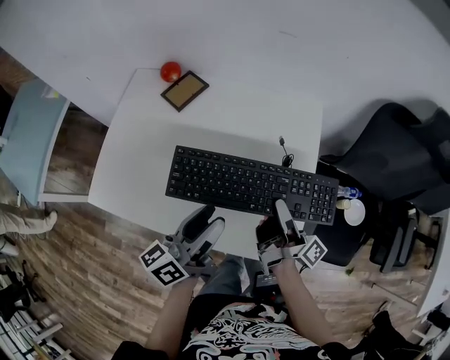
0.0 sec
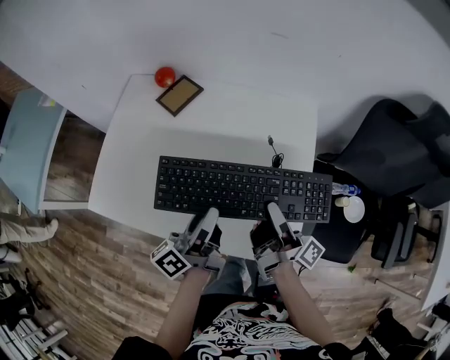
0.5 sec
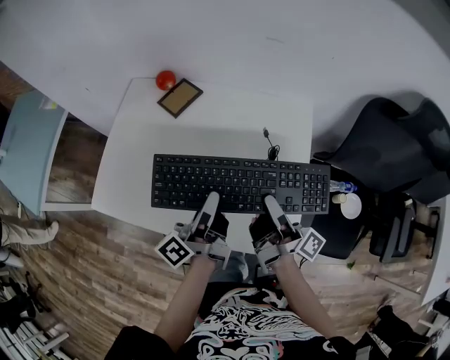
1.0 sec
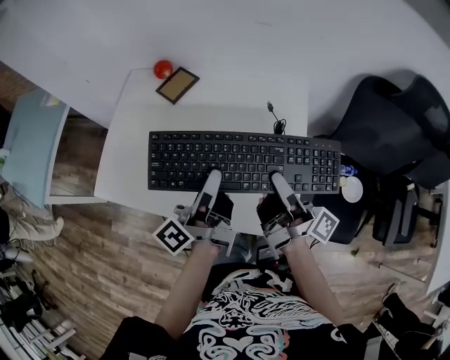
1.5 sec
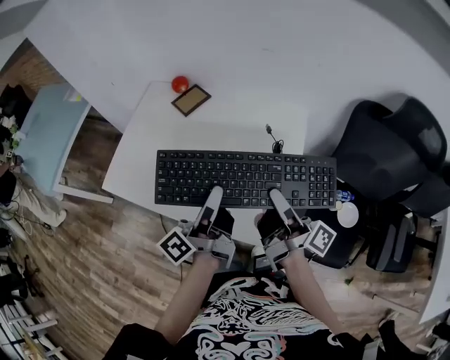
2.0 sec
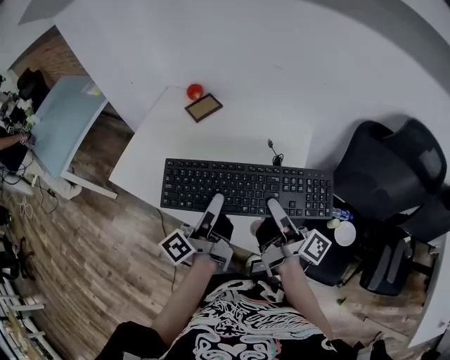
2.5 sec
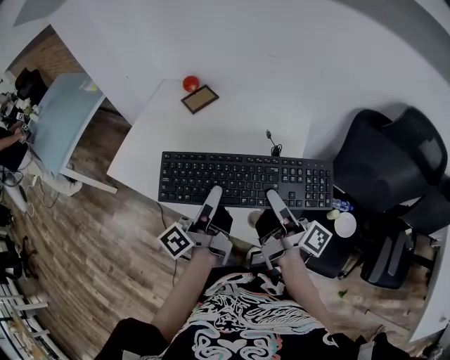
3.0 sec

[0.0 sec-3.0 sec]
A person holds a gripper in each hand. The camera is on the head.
0.0 sec to 1.5 sec: The left gripper heads upward, covering about 5 cm, turns by some 30 degrees, and closes. Meanwhile the right gripper goes approximately 10 cm upward.
1.5 sec to 3.0 sec: The grippers move only a little.

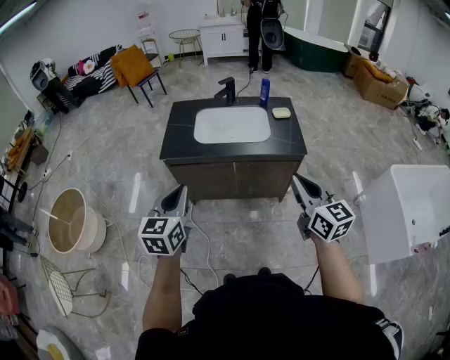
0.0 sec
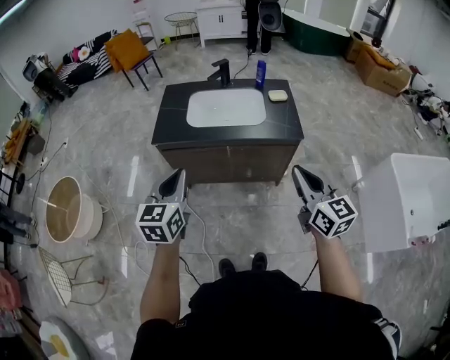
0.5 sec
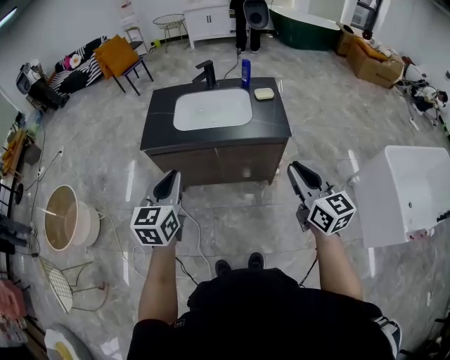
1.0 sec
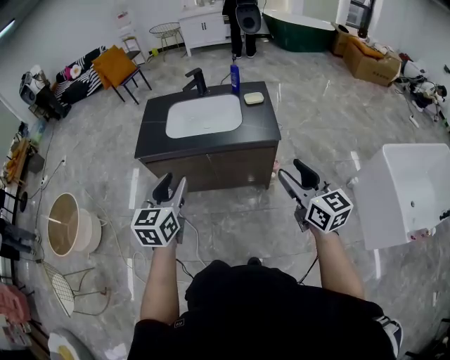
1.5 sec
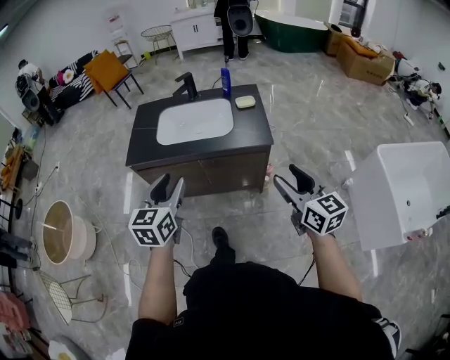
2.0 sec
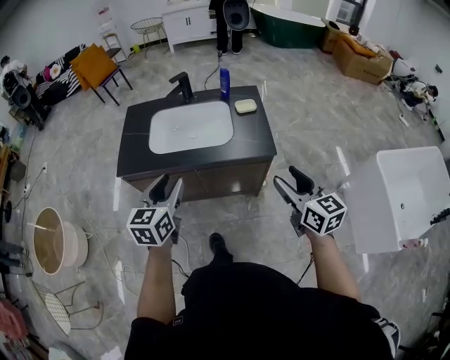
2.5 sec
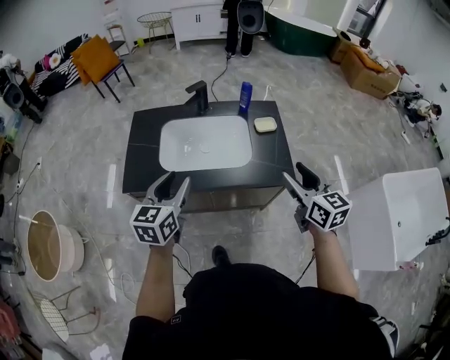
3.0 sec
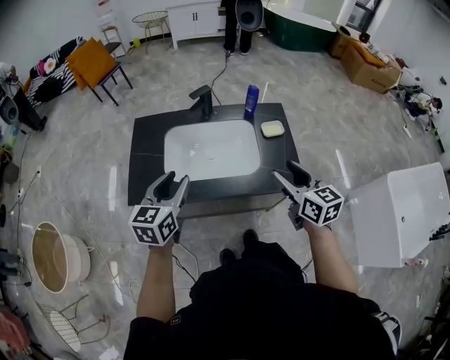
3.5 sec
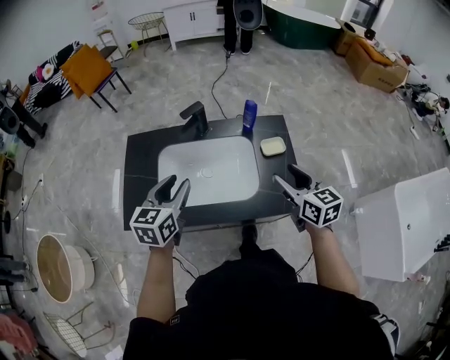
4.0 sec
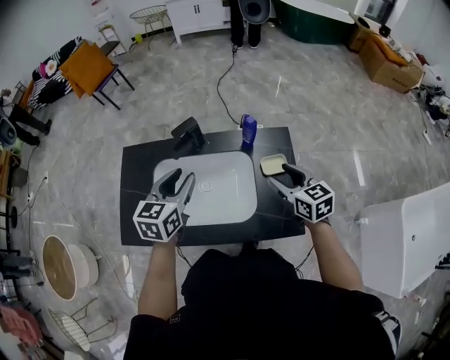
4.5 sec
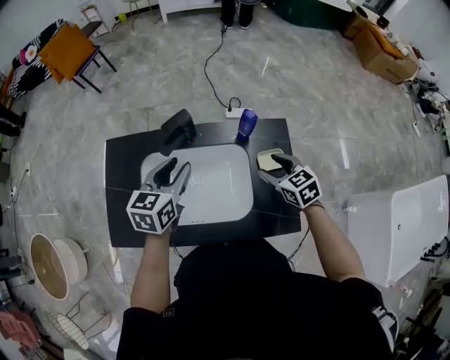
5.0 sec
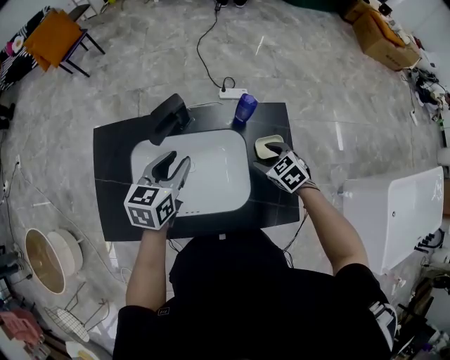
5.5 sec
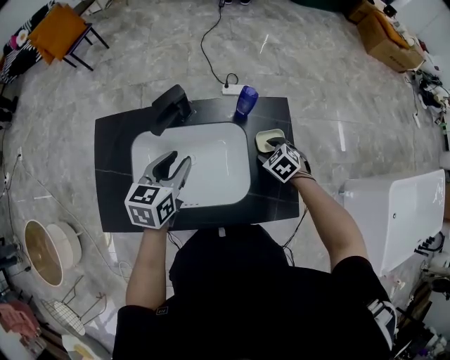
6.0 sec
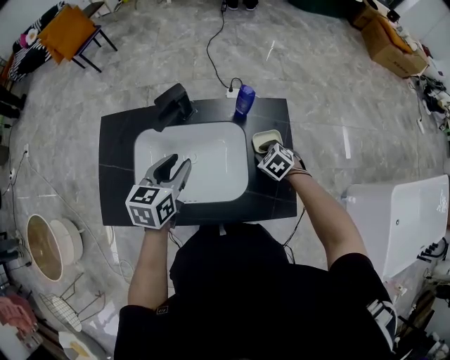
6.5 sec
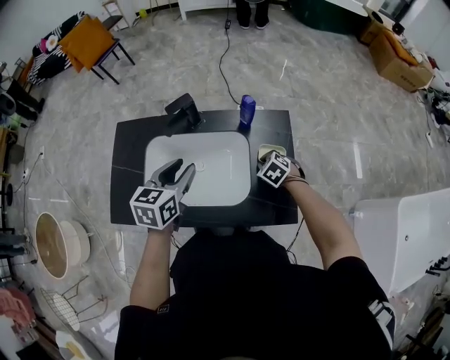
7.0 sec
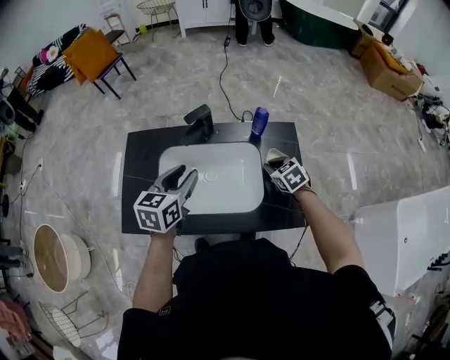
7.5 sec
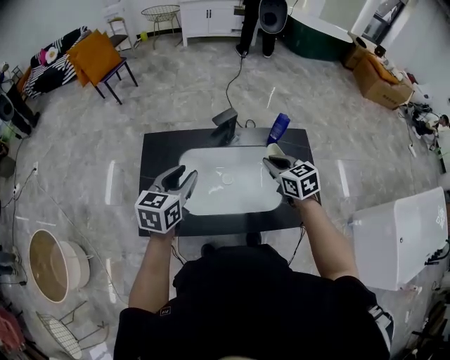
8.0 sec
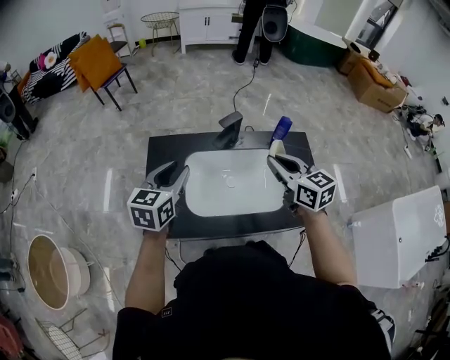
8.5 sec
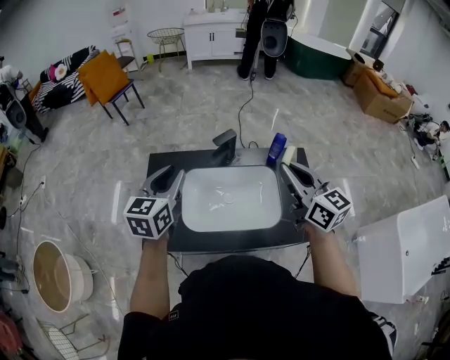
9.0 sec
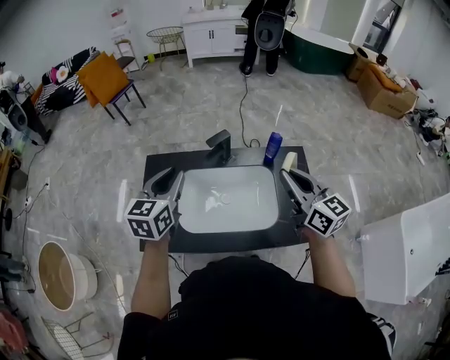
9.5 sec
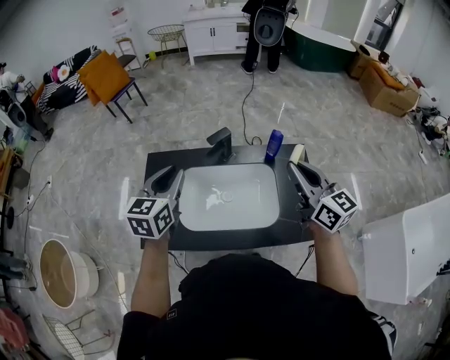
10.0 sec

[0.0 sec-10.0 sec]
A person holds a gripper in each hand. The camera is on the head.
0.0 sec to 2.0 sec: Both grippers travel together to the right, some 15 cm. The right gripper opens its fingers. Meanwhile the left gripper opens its fingers.
2.0 sec to 4.0 sec: Both grippers travel together forward, roughly 40 cm.
4.0 sec to 6.0 sec: The left gripper is displaced forward, downward and to the right by about 15 cm; the right gripper goes roughly 30 cm downward and forward, and angles its fingers downward, by roughly 50 degrees.
6.0 sec to 8.0 sec: The right gripper moves upward and to the left, about 25 cm, angles its fingers upward, by approximately 30 degrees, and closes up, while the left gripper goes some 15 cm to the left and upward.
8.0 sec to 10.0 sec: The left gripper shifts roughly 10 cm upward. The right gripper heads upward and to the right, covering approximately 20 cm, and tips its fingers upward by approximately 30 degrees.

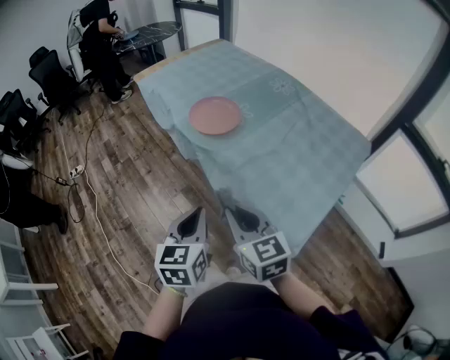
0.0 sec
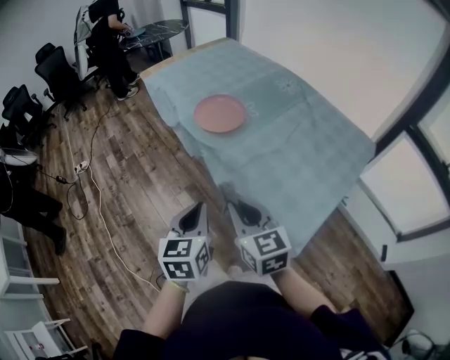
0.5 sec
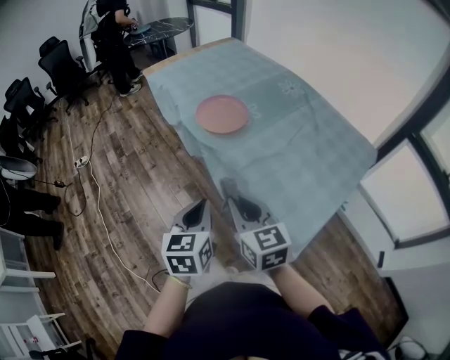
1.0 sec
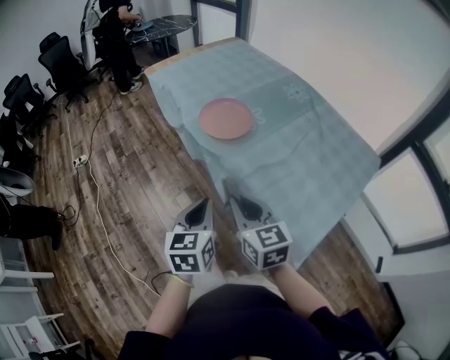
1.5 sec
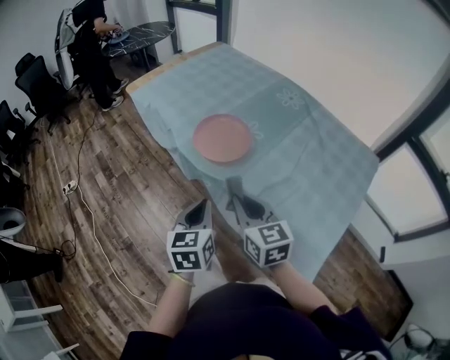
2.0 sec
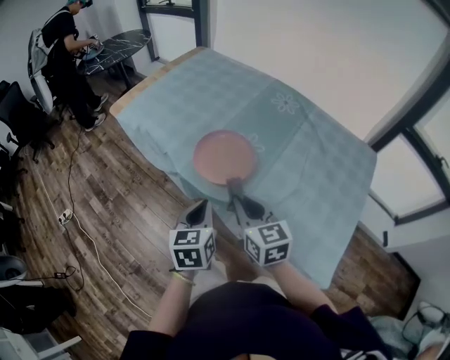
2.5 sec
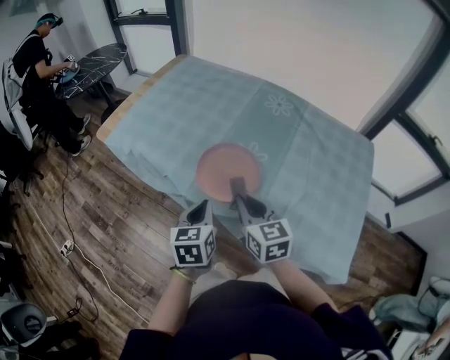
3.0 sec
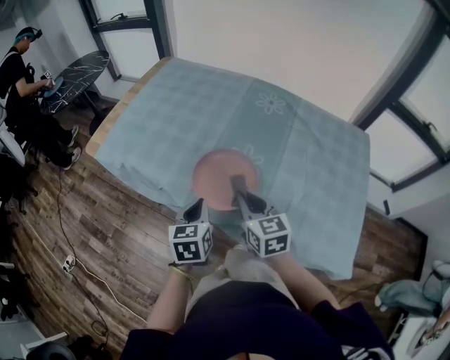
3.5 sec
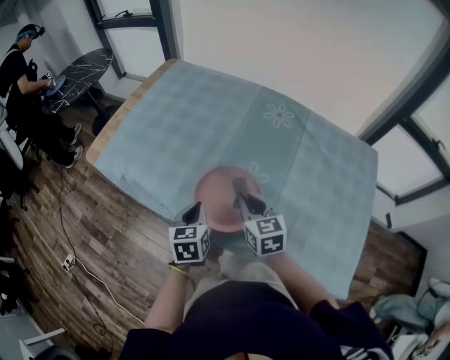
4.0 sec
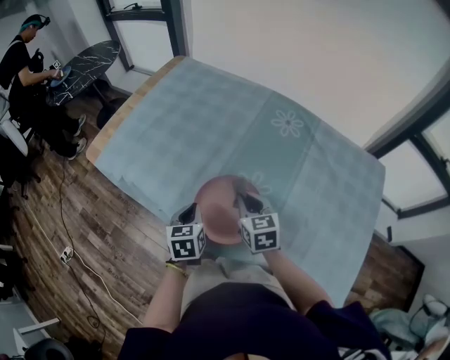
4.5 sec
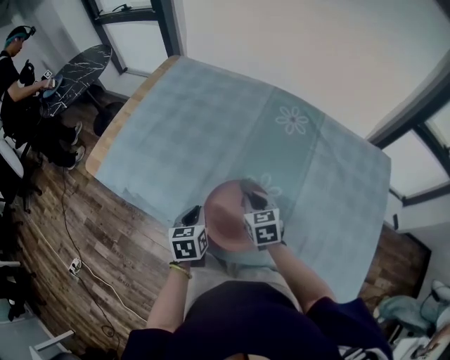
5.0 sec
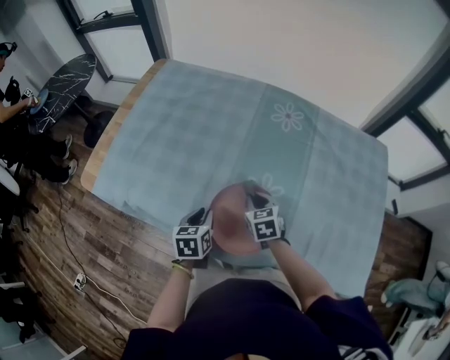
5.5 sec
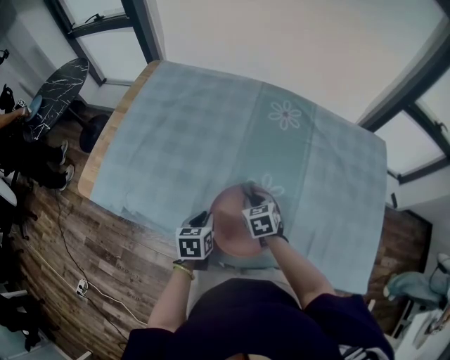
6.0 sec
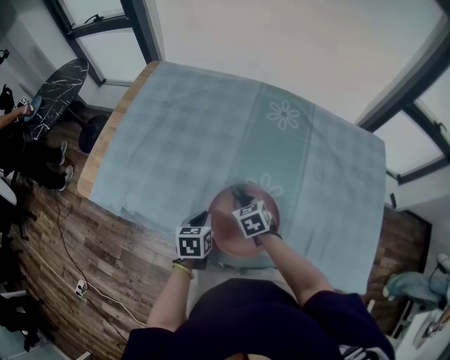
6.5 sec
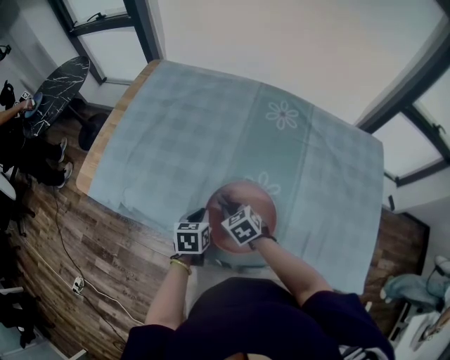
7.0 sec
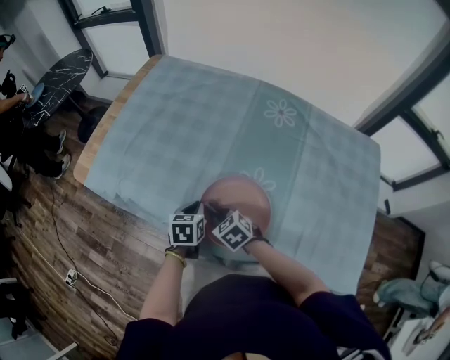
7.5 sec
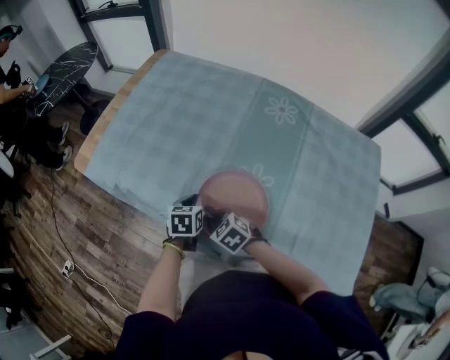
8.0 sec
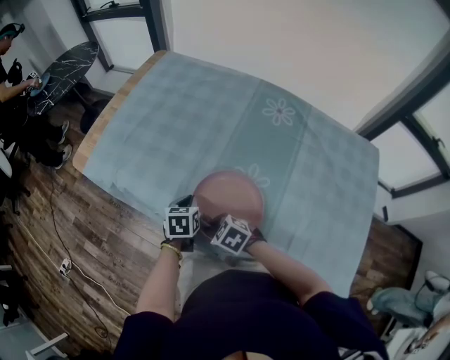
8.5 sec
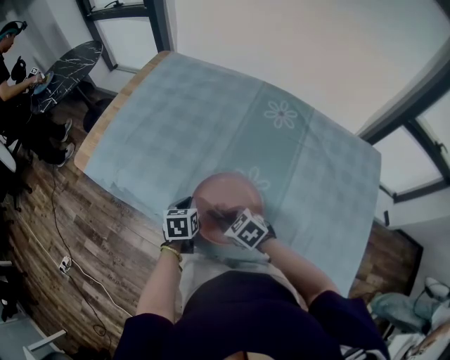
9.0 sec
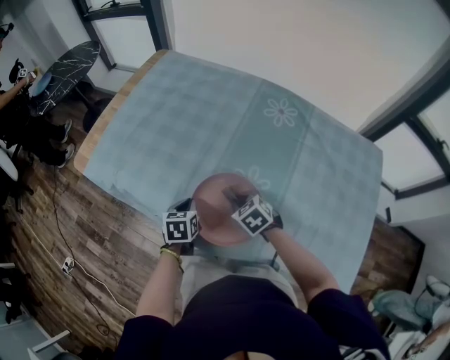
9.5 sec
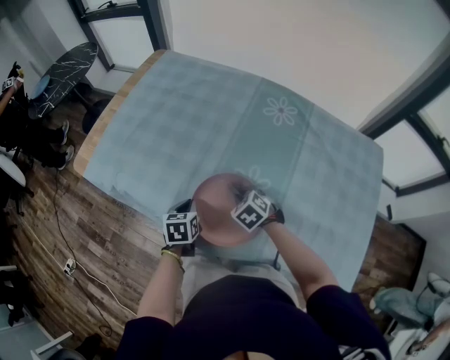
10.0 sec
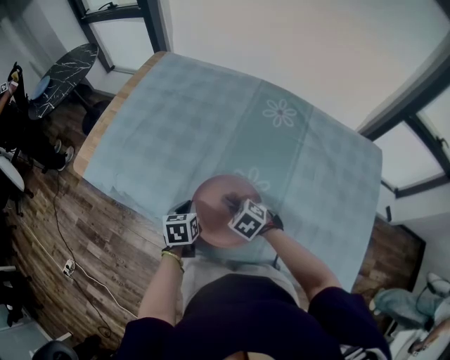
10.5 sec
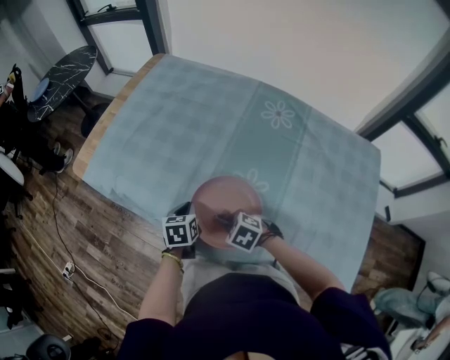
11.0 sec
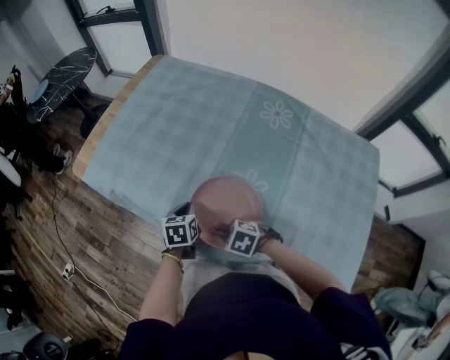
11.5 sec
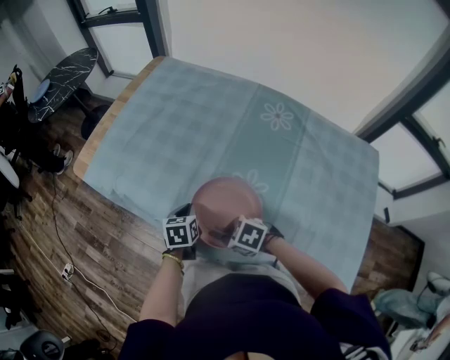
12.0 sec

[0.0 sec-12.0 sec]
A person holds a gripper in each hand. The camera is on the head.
0.0 sec to 2.0 sec: The two grippers go about 20 cm forward.
2.0 sec to 4.0 sec: Both grippers travel together forward, roughly 30 cm. The right gripper turns by some 20 degrees. Meanwhile the left gripper swivels some 20 degrees.
4.0 sec to 6.0 sec: Both grippers move downward and forward, about 15 cm. The right gripper rotates about 20 degrees.
6.0 sec to 8.0 sec: The right gripper changes place by roughly 15 cm, and swivels approximately 40 degrees.
8.0 sec to 10.0 sec: The right gripper travels to the right by some 15 cm.
10.0 sec to 12.0 sec: The right gripper shifts by roughly 15 cm, and rotates about 30 degrees.

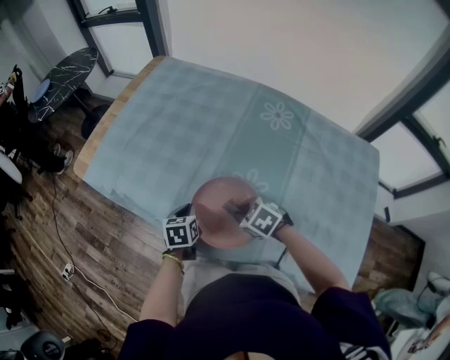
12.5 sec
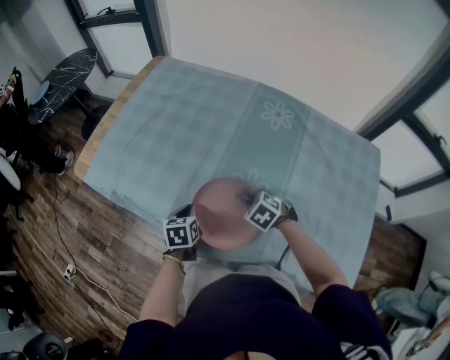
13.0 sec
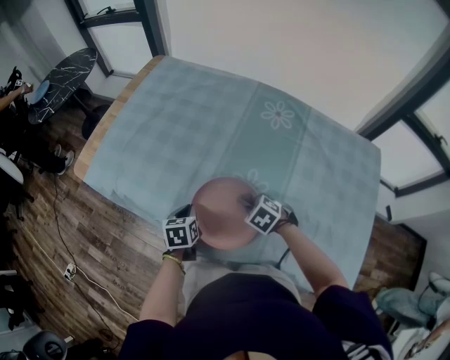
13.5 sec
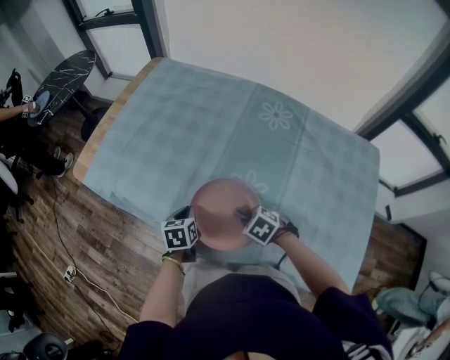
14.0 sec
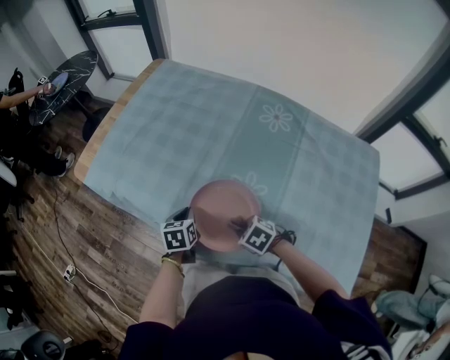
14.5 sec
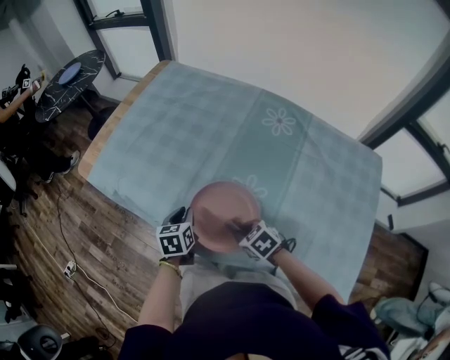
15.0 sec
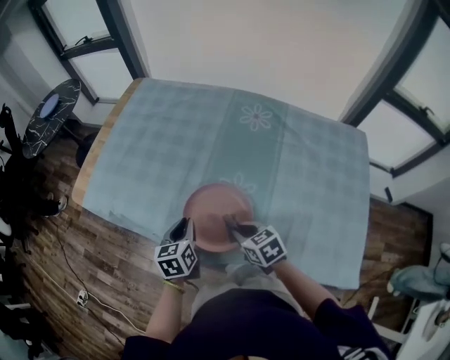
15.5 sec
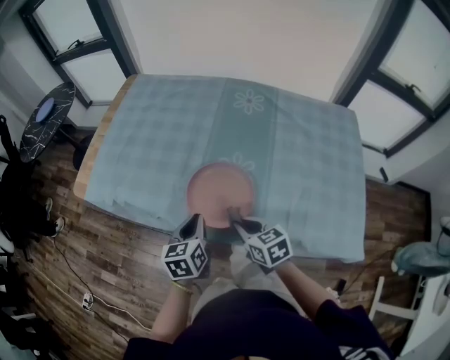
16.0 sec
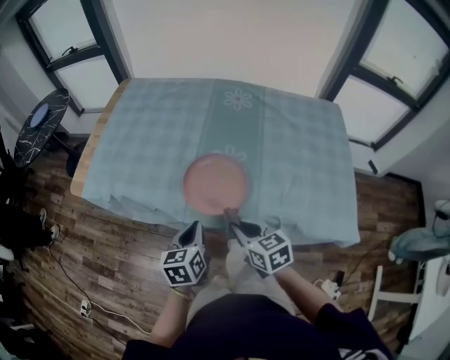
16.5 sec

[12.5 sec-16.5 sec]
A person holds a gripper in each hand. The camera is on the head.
12.5 sec to 14.5 sec: The right gripper changes place by about 5 cm.
14.5 sec to 16.5 sec: The right gripper heads upward, covering approximately 15 cm, and tips its fingers upward by approximately 40 degrees. Meanwhile the left gripper ends up some 20 cm from where it was, and rotates approximately 20 degrees.
